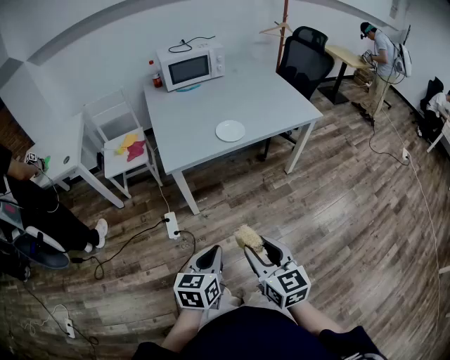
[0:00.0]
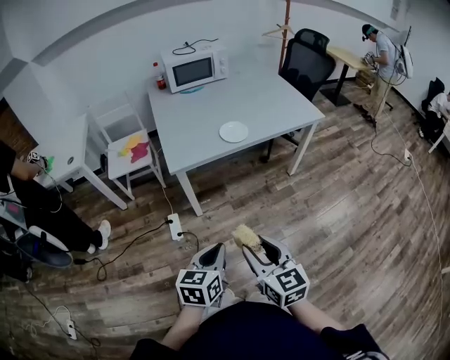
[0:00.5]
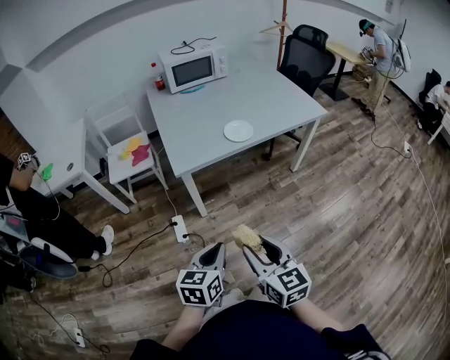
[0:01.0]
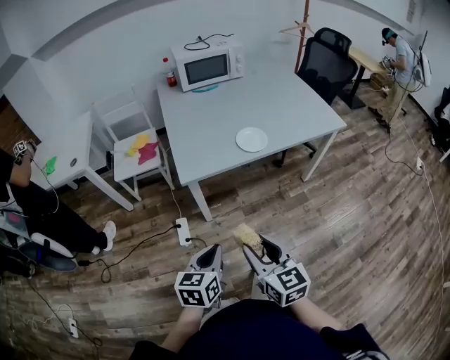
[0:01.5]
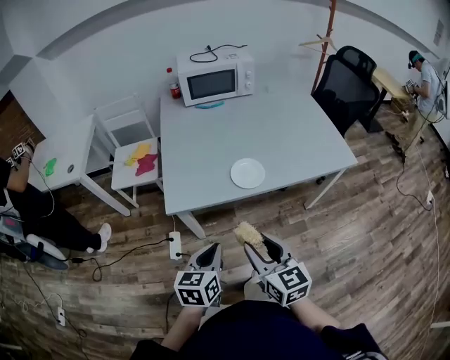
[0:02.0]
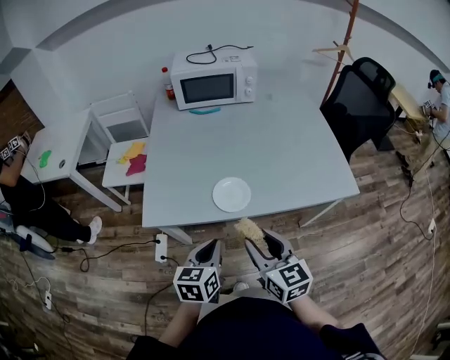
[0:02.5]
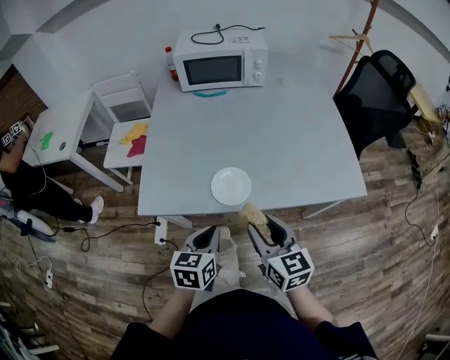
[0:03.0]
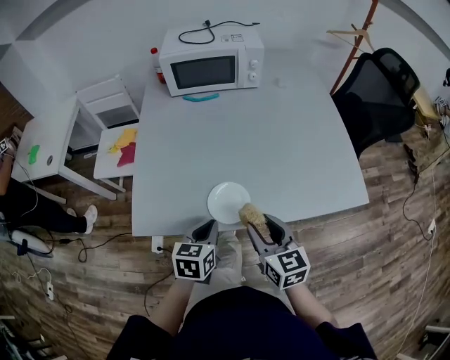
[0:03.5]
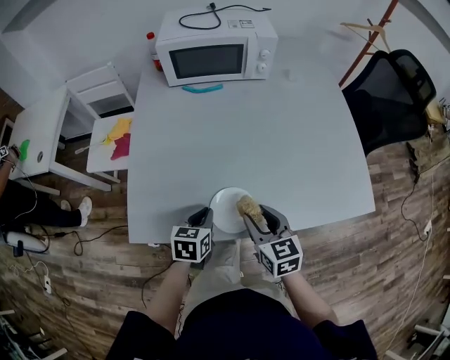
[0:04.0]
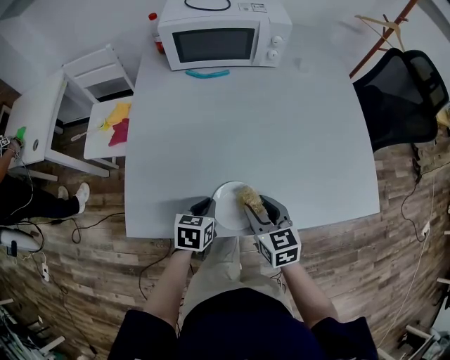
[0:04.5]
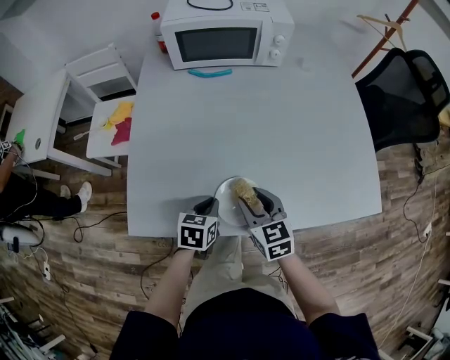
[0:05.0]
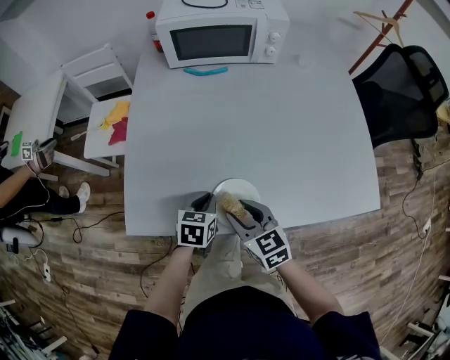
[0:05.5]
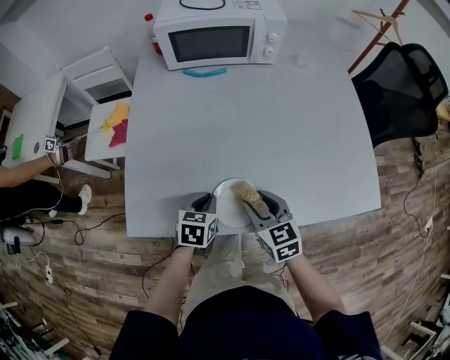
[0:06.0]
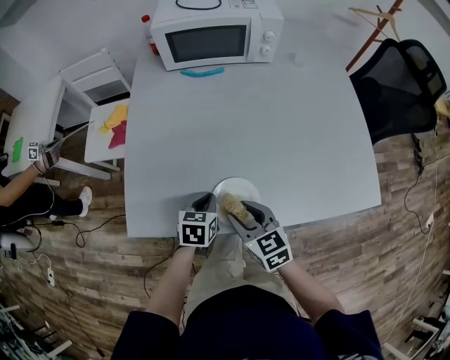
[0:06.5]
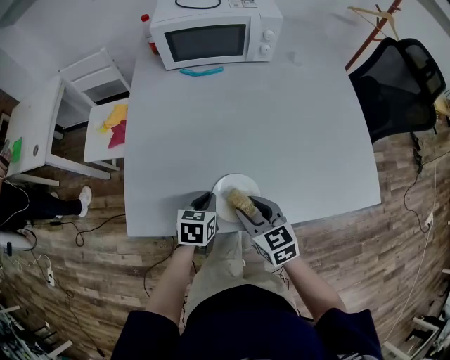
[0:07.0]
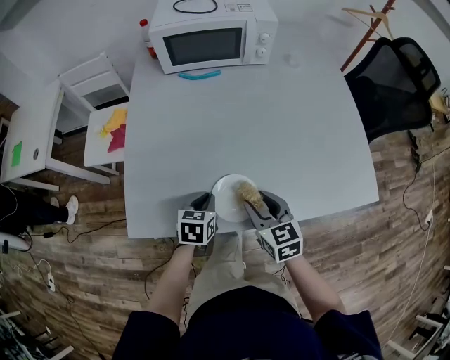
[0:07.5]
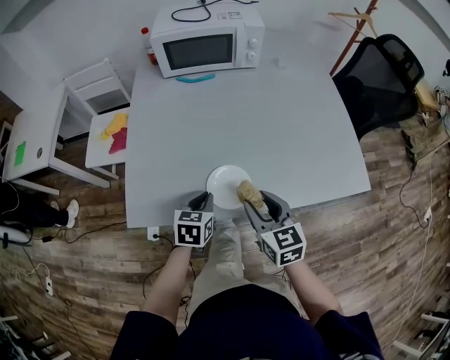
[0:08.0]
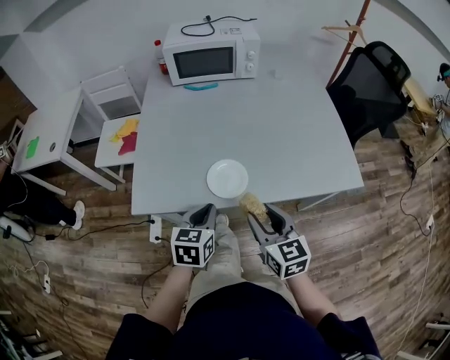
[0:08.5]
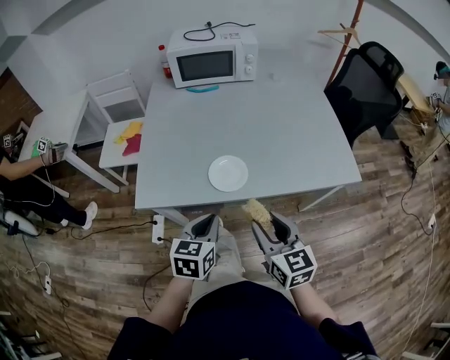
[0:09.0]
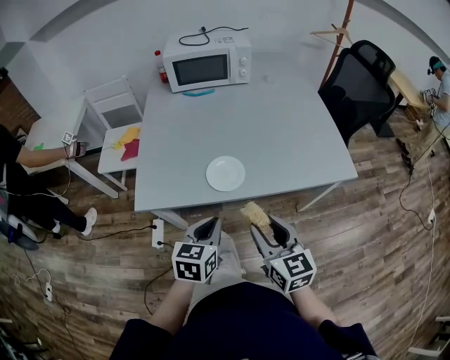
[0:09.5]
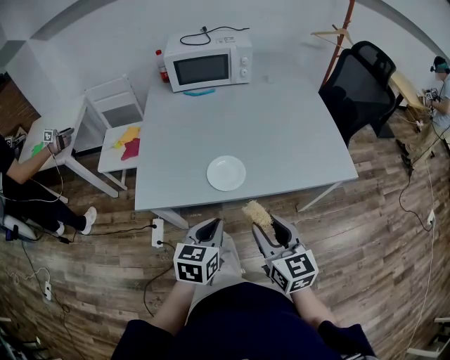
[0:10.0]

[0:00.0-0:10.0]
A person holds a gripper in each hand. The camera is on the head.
0.0 to 2.0 s: Both grippers travel together forward, approximately 25 cm.
2.0 to 4.0 s: The right gripper heads forward, covering roughly 30 cm. The left gripper travels forward and downward by some 35 cm.
6.0 to 8.0 s: The right gripper travels upward and backward by roughly 10 cm; the left gripper changes place by about 5 cm.
8.0 to 10.0 s: Both grippers move backward and upward, roughly 20 cm.

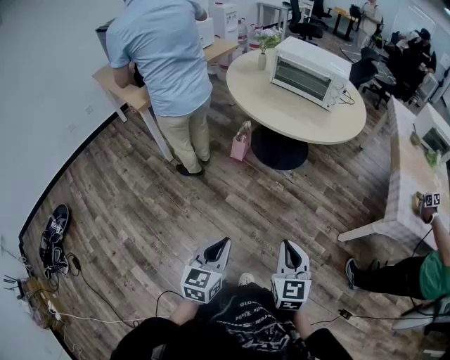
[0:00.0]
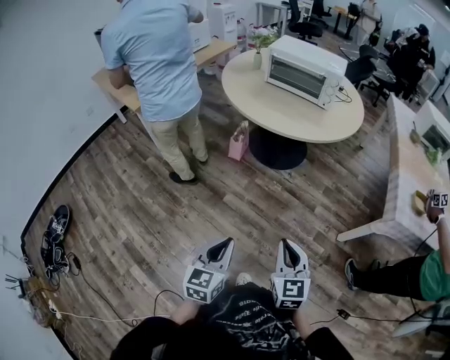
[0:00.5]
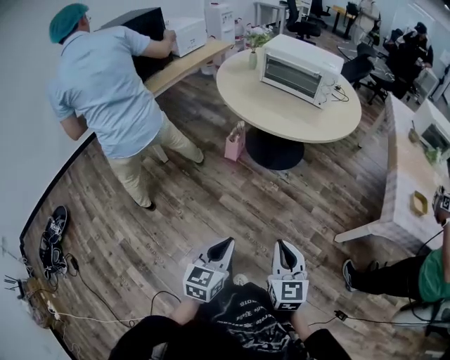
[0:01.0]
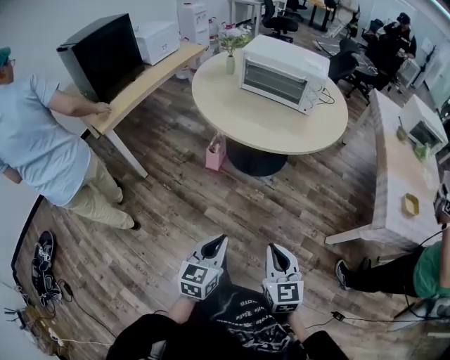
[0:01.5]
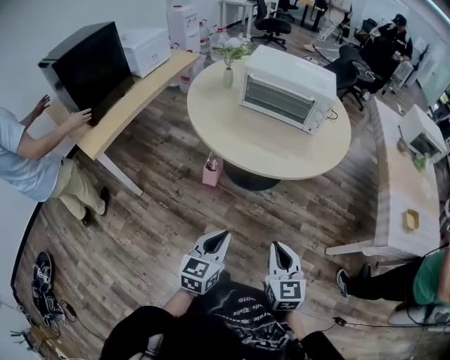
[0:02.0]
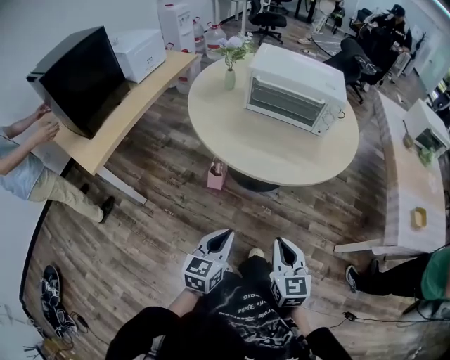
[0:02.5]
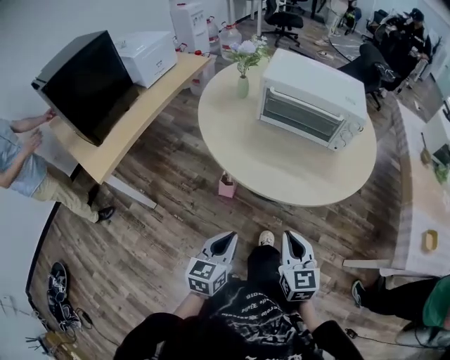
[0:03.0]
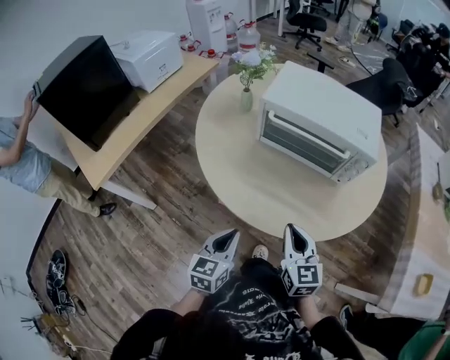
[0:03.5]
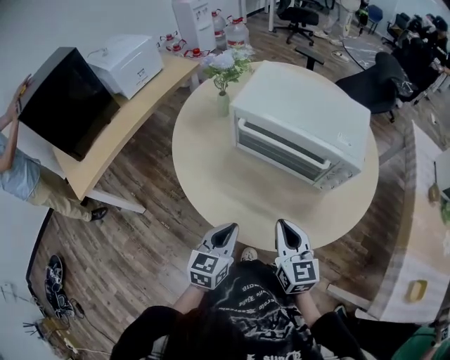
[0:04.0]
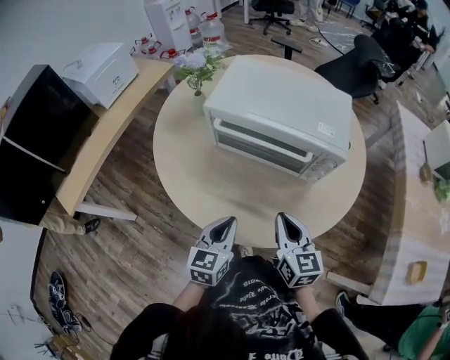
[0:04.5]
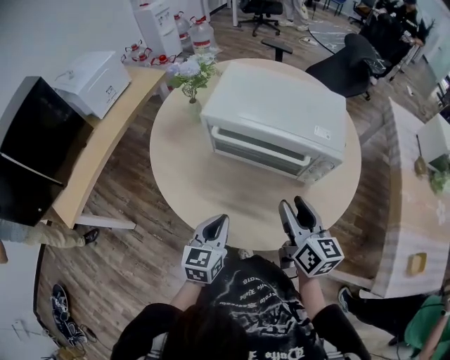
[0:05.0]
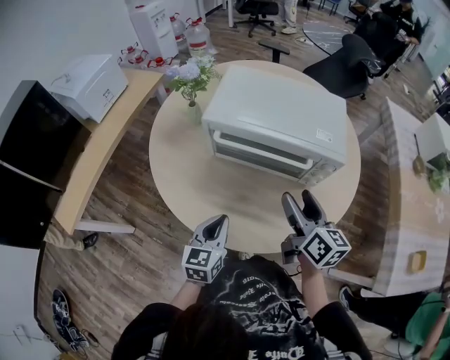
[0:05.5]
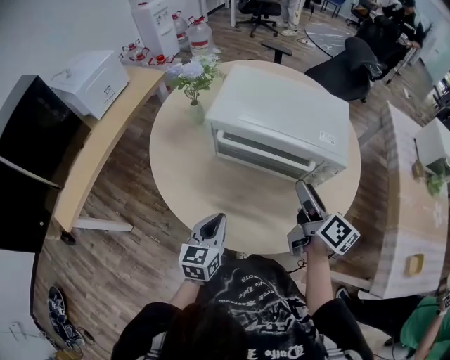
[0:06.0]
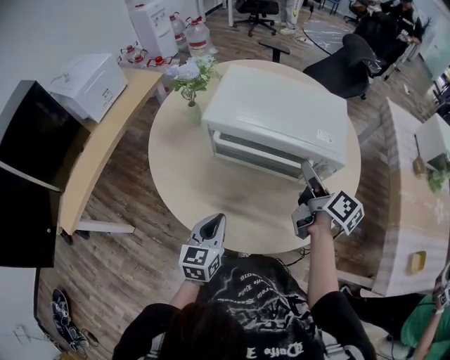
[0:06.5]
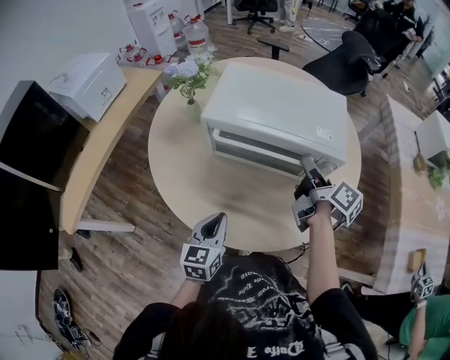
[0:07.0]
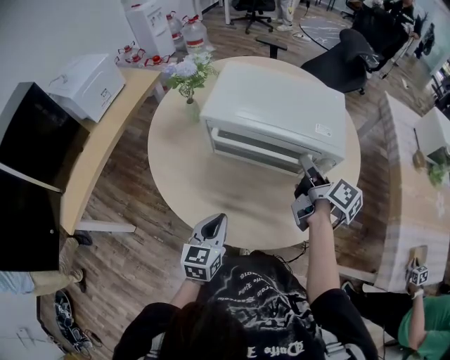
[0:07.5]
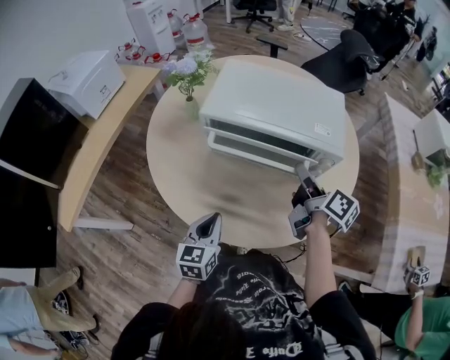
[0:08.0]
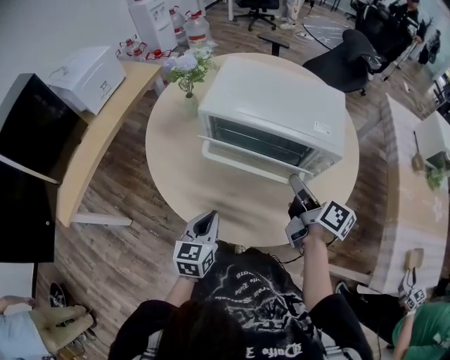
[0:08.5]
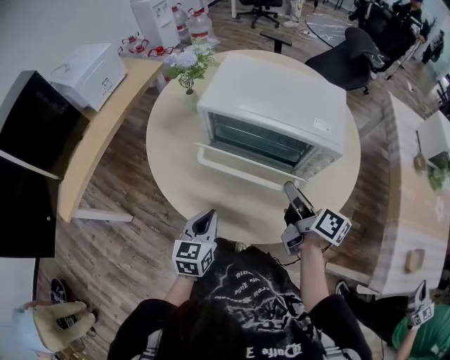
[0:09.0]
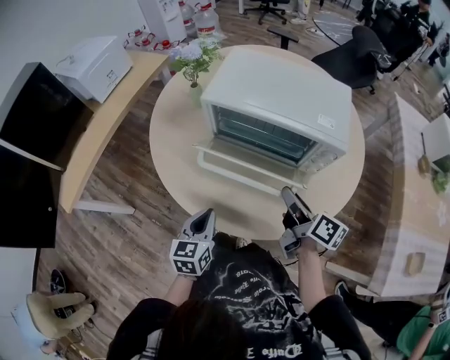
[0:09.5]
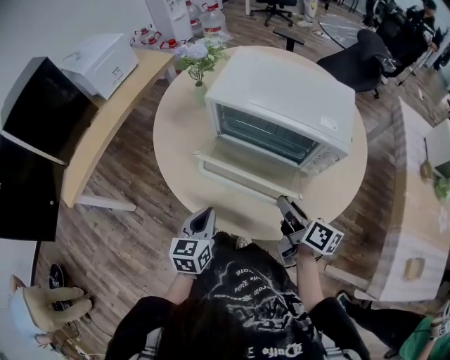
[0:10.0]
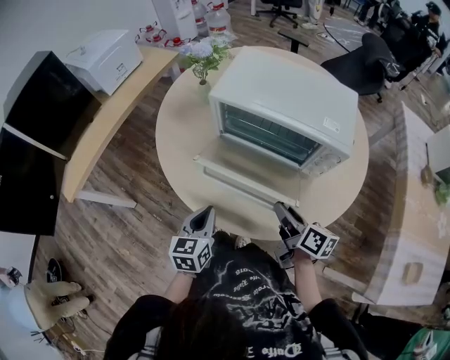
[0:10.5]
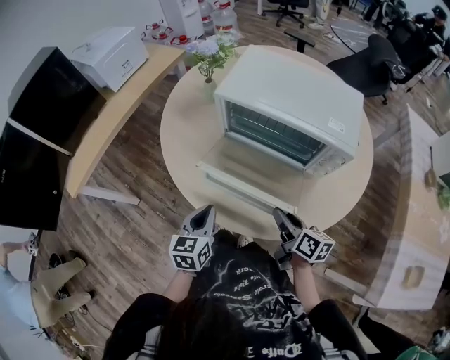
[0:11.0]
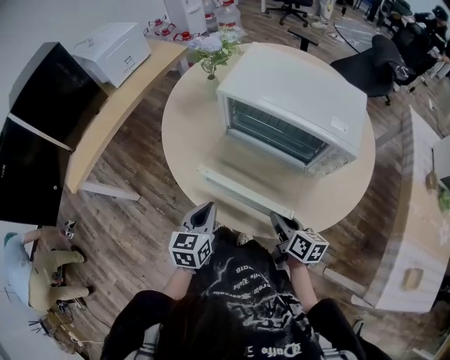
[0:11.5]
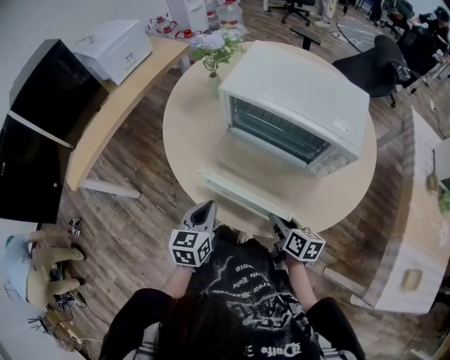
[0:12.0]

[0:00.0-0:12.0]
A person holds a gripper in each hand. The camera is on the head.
0.0 to 2.0 s: Both grippers move forward, roughly 35 cm.
2.0 to 4.0 s: Both grippers are carried forward, about 50 cm.
4.0 to 6.0 s: The right gripper is displaced forward, to the right and upward by roughly 15 cm, twists about 50 degrees clockwise, seen from behind, and opens, while the left gripper shifts about 10 cm forward.
6.0 to 8.0 s: The right gripper closes up.
8.0 to 10.0 s: The right gripper goes about 10 cm backward and downward.
10.0 to 12.0 s: The right gripper moves downward, approximately 10 cm, and rotates approximately 20 degrees.

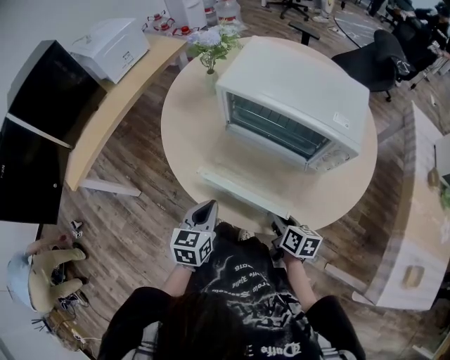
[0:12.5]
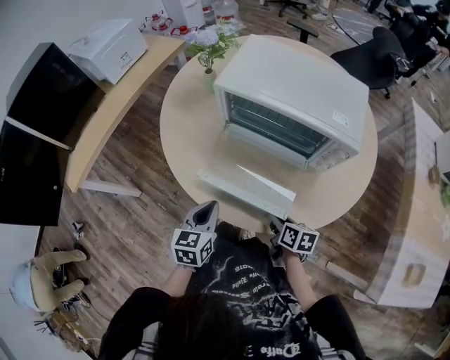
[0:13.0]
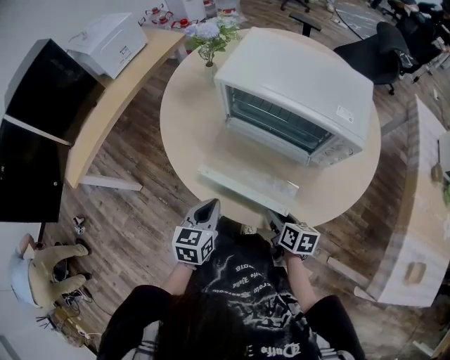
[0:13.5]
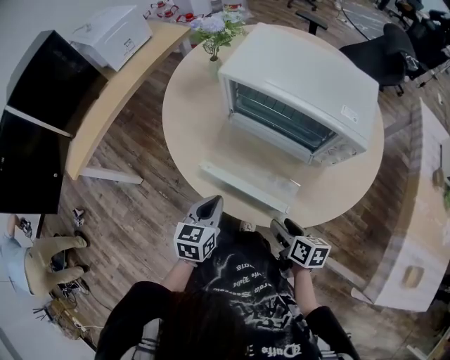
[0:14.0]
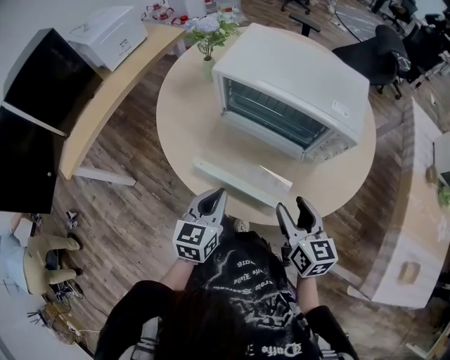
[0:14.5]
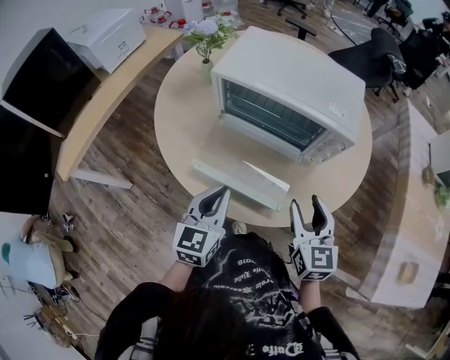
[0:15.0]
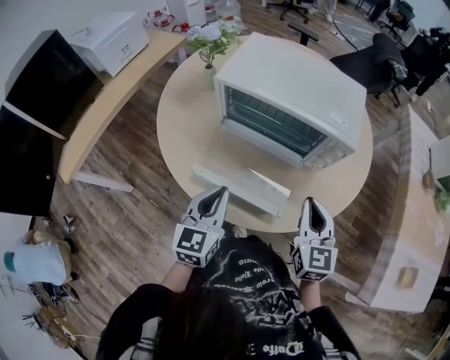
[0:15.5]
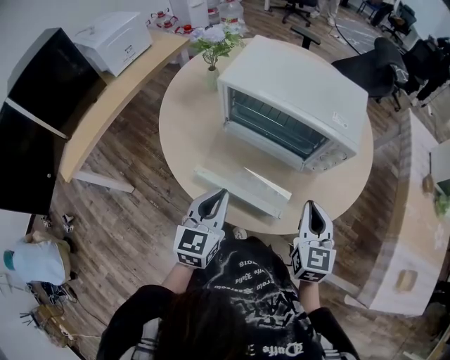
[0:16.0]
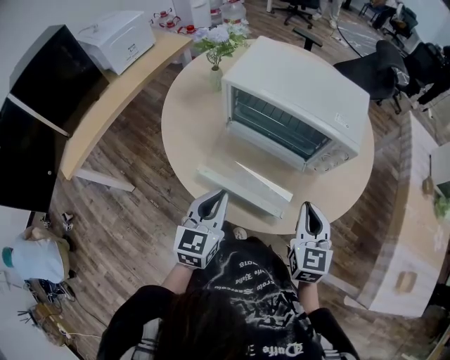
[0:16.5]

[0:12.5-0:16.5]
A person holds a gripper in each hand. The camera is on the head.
12.5 to 14.5 s: The right gripper goes roughly 15 cm upward, and turns by some 30 degrees, while the left gripper moves some 5 cm.
14.5 to 16.5 s: The right gripper changes its angle by approximately 30 degrees, and closes its fingers.

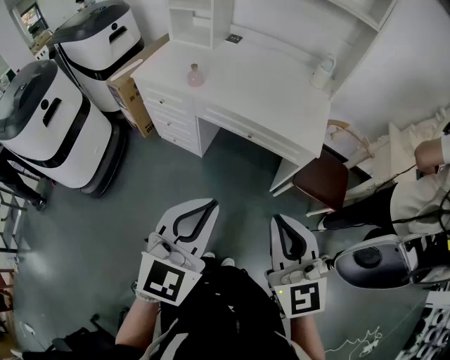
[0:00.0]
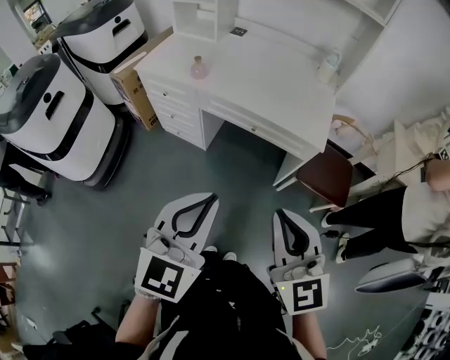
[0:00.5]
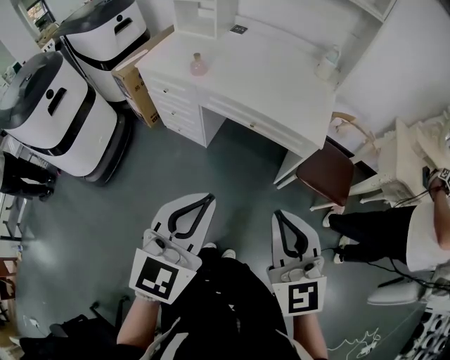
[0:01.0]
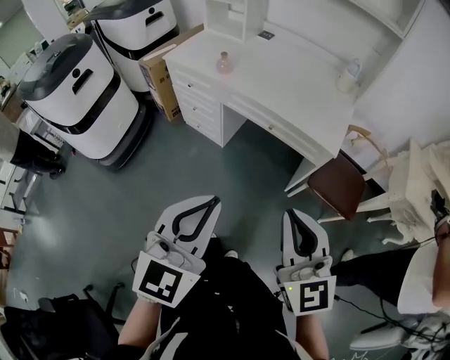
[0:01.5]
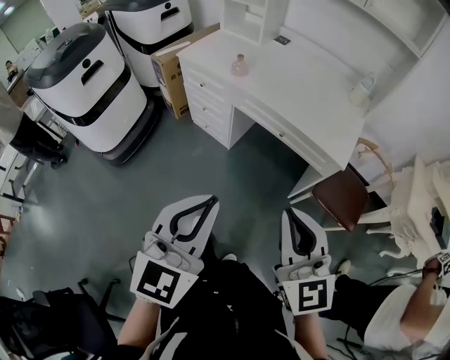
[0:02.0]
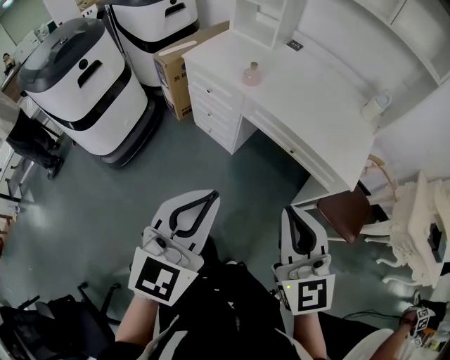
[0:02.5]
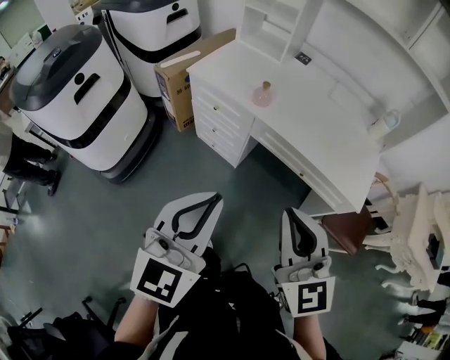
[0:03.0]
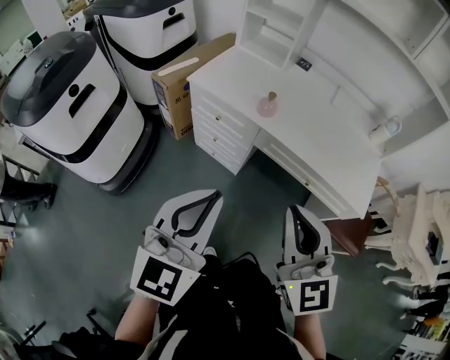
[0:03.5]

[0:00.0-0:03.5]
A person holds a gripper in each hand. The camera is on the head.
0.0 to 2.0 s: The left gripper shifts approximately 5 cm backward.
2.0 to 3.5 s: Both grippers travel together forward and to the left, roughly 30 cm.
